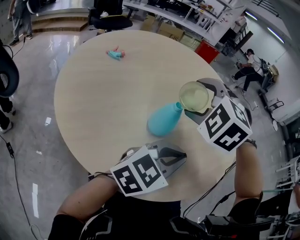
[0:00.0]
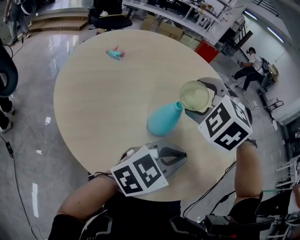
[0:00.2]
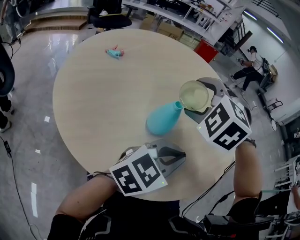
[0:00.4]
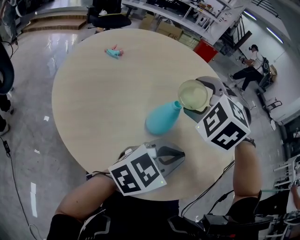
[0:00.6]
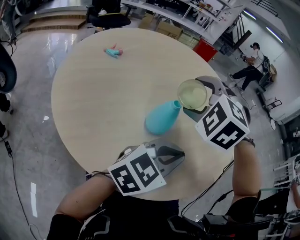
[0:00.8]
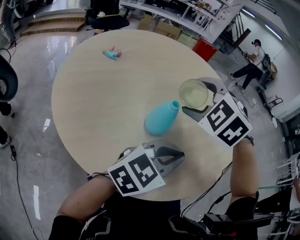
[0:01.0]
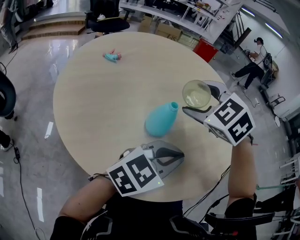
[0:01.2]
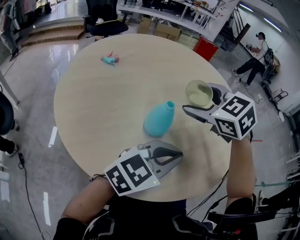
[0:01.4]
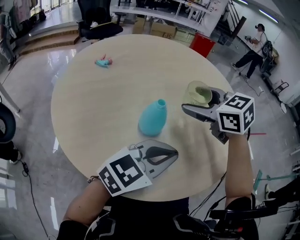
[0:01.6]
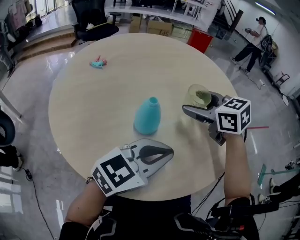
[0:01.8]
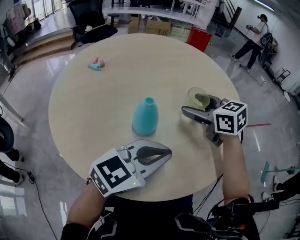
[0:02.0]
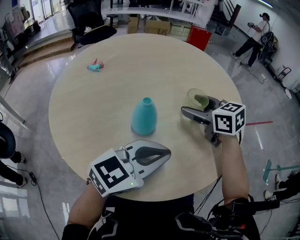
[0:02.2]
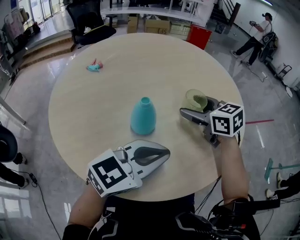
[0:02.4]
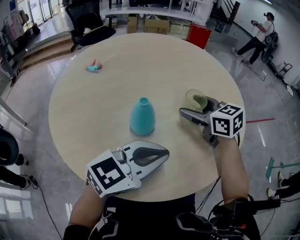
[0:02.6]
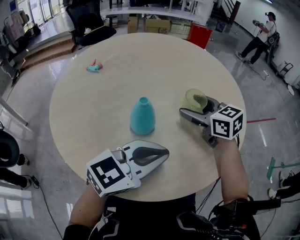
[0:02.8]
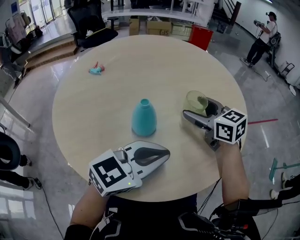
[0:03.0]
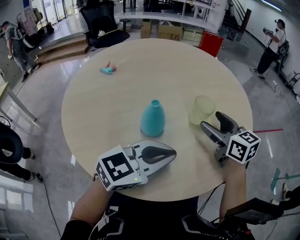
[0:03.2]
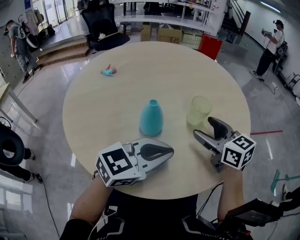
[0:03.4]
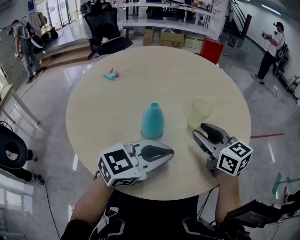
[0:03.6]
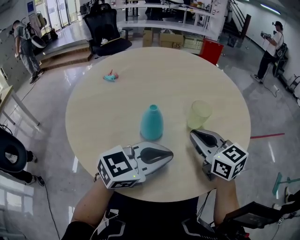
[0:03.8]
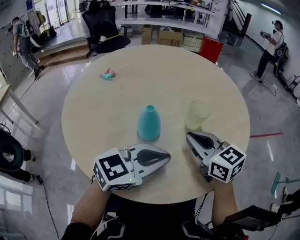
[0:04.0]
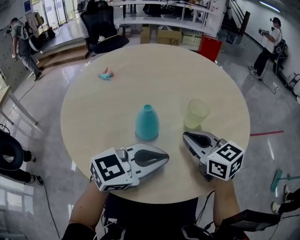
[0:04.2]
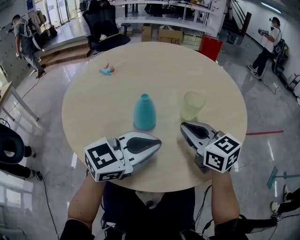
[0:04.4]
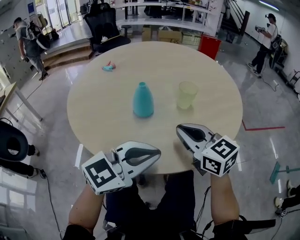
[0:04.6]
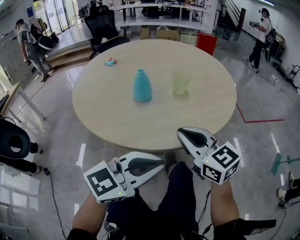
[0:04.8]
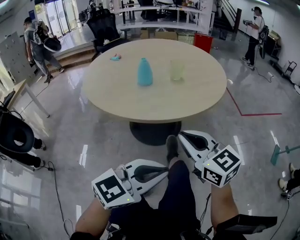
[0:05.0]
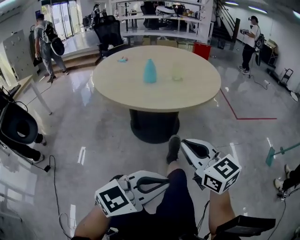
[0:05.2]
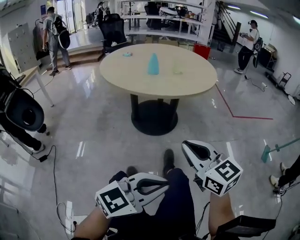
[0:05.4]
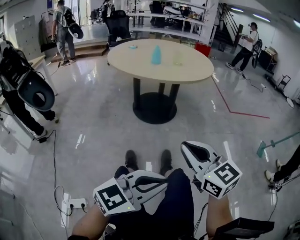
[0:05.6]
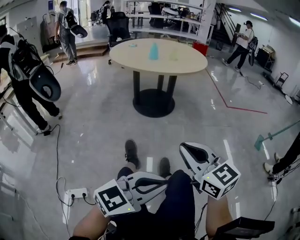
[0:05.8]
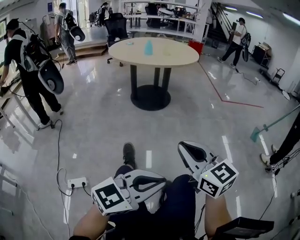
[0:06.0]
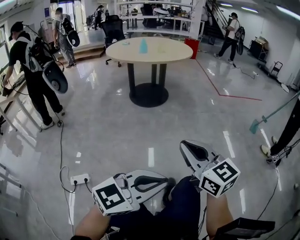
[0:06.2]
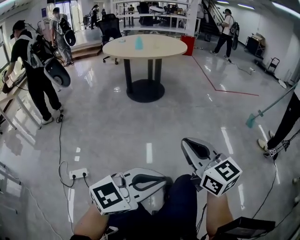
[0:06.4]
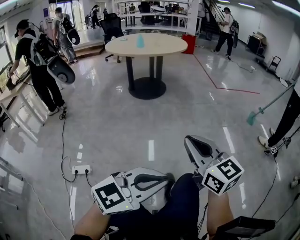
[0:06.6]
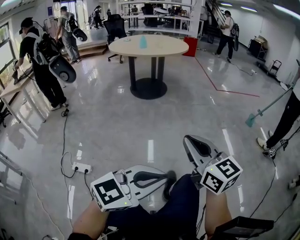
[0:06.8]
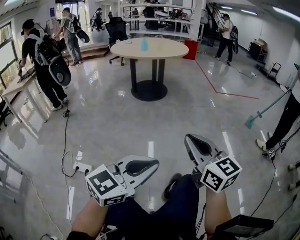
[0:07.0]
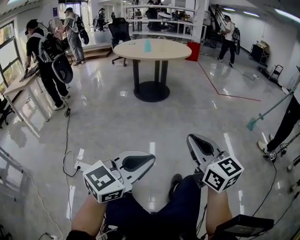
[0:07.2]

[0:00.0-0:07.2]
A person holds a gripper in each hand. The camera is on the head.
0:00.0 to 0:01.4: The right gripper swivels roughly 40 degrees.
0:01.4 to 0:02.8: The right gripper shifts roughly 10 cm downward and to the right, and turns by approximately 30 degrees.
0:02.8 to 0:04.4: The right gripper heads backward, covering approximately 10 cm, and closes up.
0:04.4 to 0:05.8: Both grippers are carried backward, about 80 cm.
0:05.8 to 0:07.2: Both grippers travel together backward and to the right, roughly 25 cm.

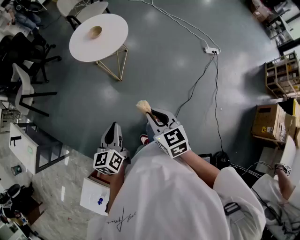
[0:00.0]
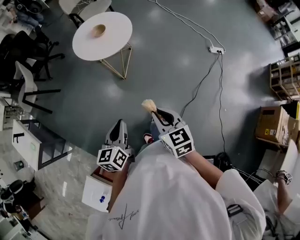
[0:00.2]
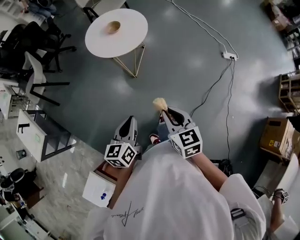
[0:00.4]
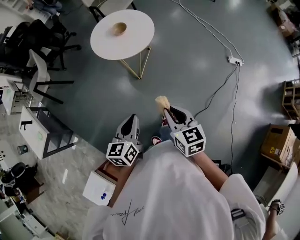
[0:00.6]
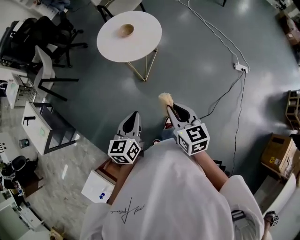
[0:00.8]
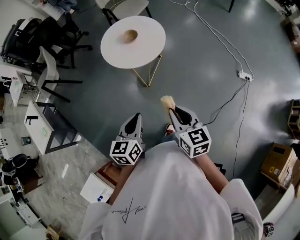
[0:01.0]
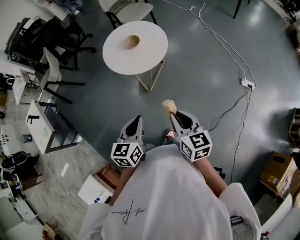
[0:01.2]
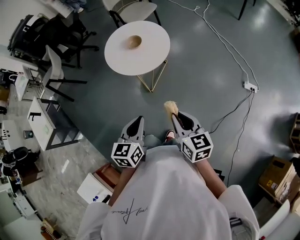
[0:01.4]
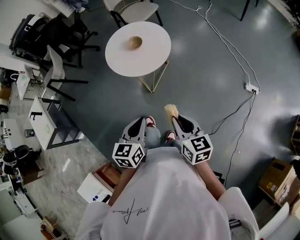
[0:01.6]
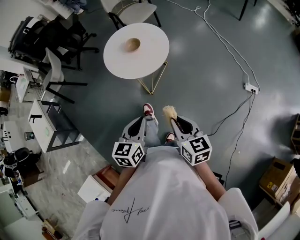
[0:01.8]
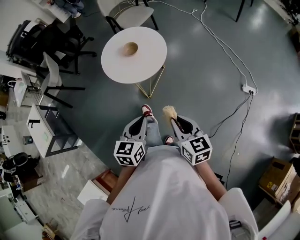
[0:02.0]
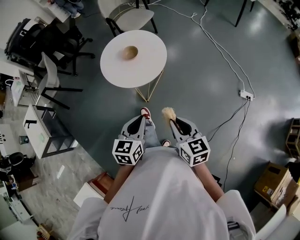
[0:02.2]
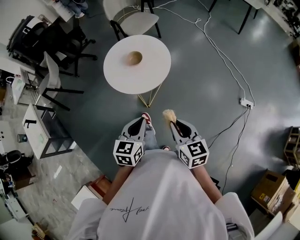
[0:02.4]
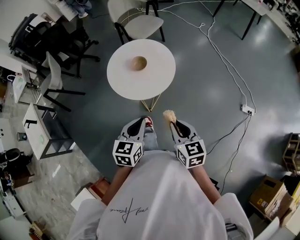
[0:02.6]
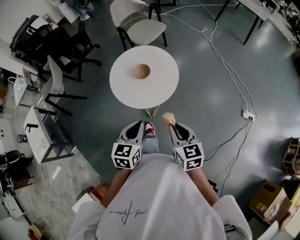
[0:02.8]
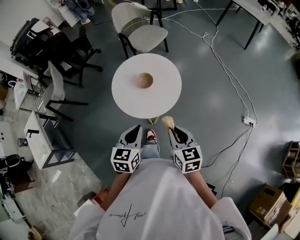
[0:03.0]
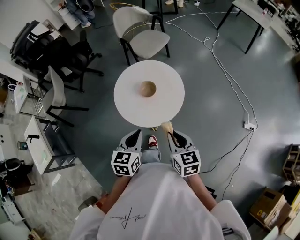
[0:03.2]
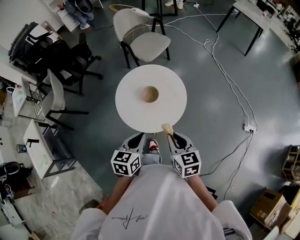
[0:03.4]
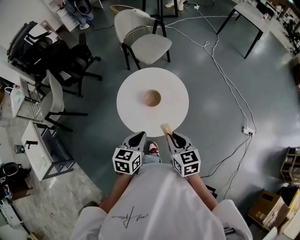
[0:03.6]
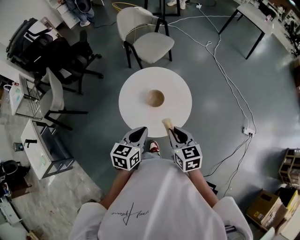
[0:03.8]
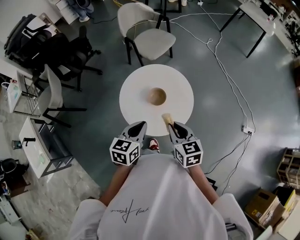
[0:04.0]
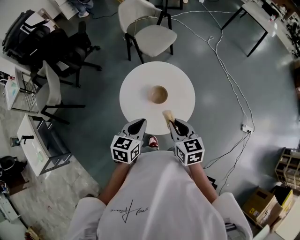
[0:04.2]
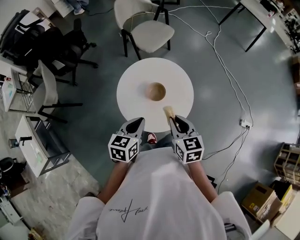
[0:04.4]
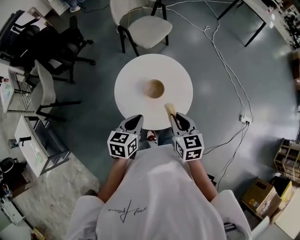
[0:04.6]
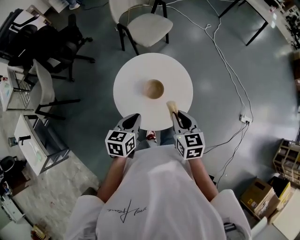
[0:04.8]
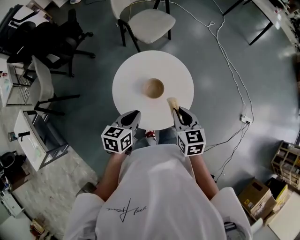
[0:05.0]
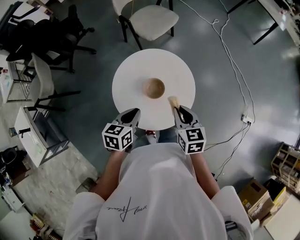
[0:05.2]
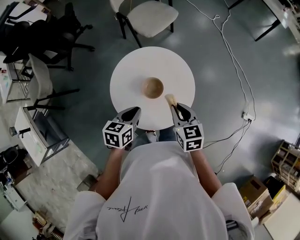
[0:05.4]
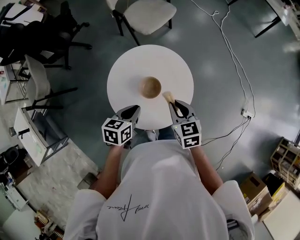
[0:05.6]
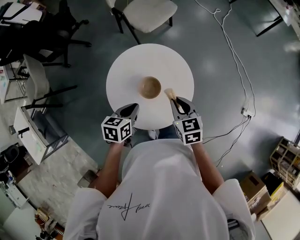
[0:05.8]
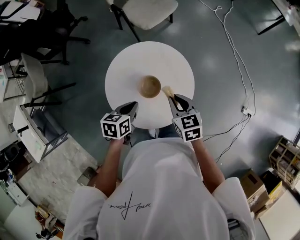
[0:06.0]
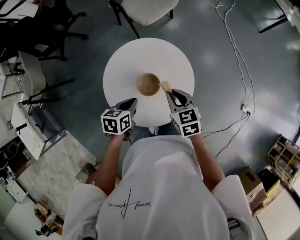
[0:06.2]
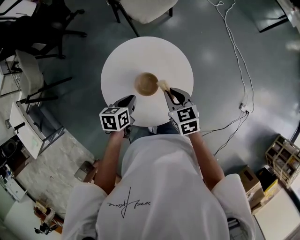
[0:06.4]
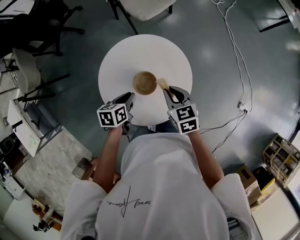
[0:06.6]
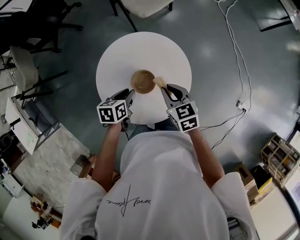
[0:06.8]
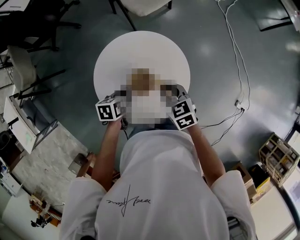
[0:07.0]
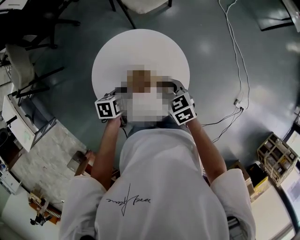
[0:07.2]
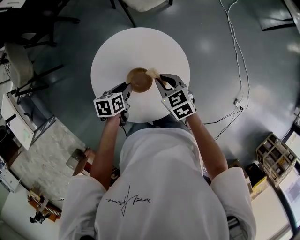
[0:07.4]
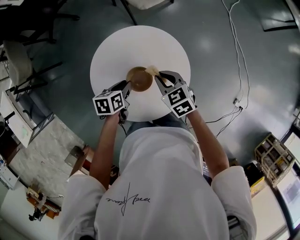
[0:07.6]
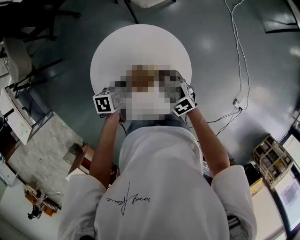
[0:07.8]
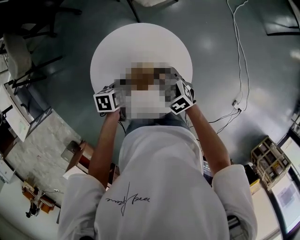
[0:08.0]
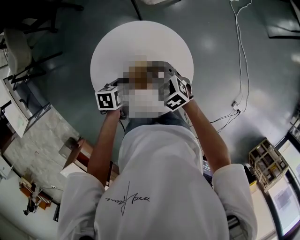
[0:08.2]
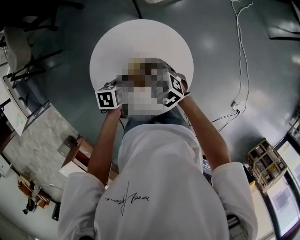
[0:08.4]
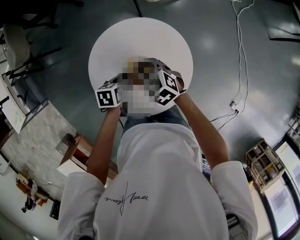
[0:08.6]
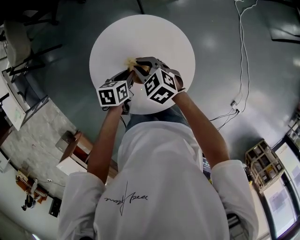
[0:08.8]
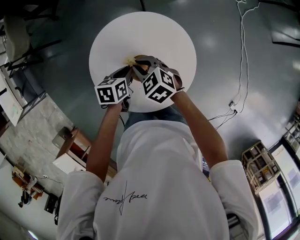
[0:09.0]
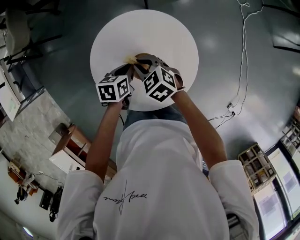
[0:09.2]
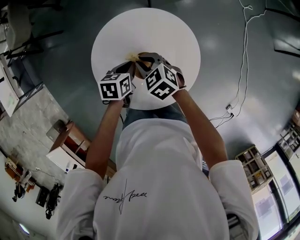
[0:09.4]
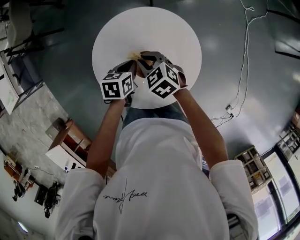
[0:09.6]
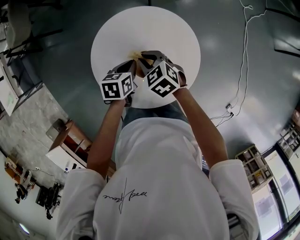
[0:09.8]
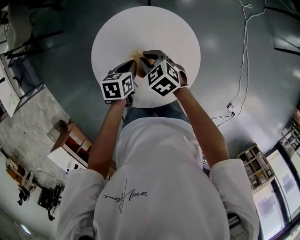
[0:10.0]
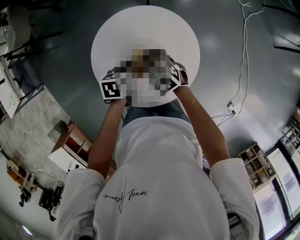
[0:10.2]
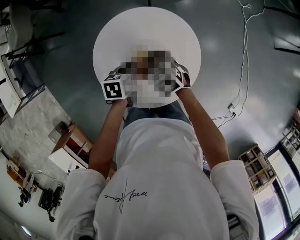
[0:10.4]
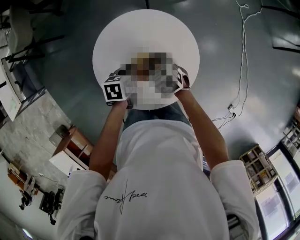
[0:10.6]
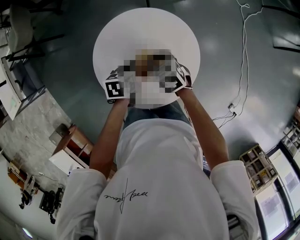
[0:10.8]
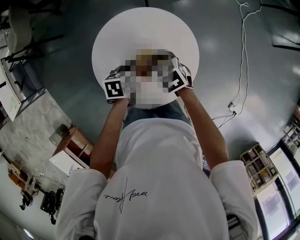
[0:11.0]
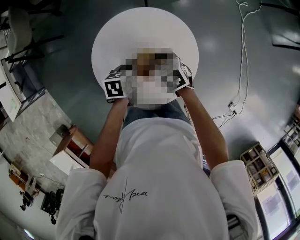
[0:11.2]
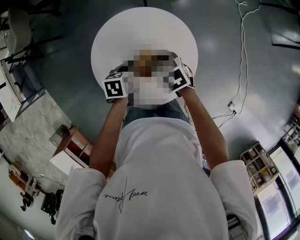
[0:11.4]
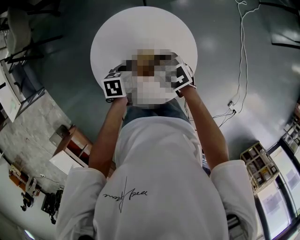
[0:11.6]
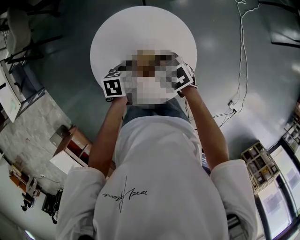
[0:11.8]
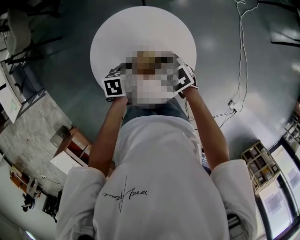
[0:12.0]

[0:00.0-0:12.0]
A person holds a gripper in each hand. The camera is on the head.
0:00.0 to 0:01.6: The two grippers go approximately 20 cm forward and to the right.
0:01.6 to 0:03.0: The grippers both shift forward by some 20 cm.
0:03.0 to 0:04.4: The grippers both shift forward and to the left by about 20 cm.
0:04.4 to 0:06.0: The right gripper moves forward and downward, about 15 cm; the left gripper shifts roughly 15 cm downward and forward, and swivels approximately 20 degrees.
0:06.0 to 0:07.6: Both grippers travel together downward and forward, approximately 10 cm. The right gripper swivels roughly 20 degrees.
0:07.6 to 0:09.0: The right gripper shifts roughly 10 cm to the left, and changes its angle by roughly 20 degrees.
0:09.0 to 0:10.4: There are only small adjustments of the grippers.
0:10.4 to 0:12.0: The right gripper shifts by roughly 5 cm.

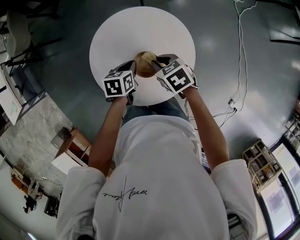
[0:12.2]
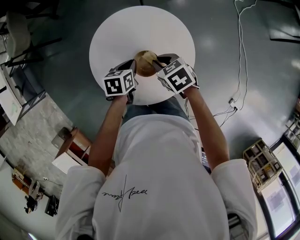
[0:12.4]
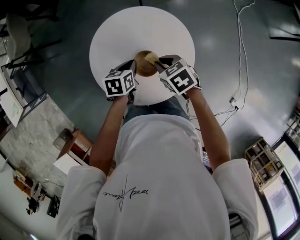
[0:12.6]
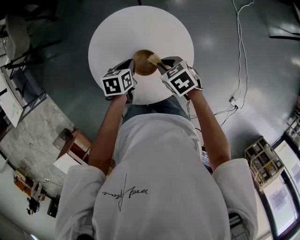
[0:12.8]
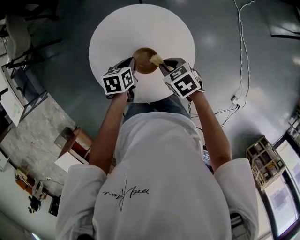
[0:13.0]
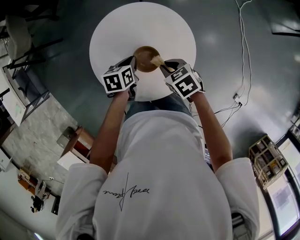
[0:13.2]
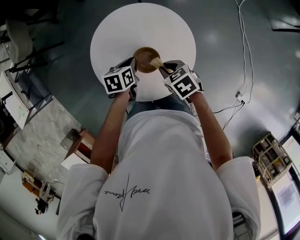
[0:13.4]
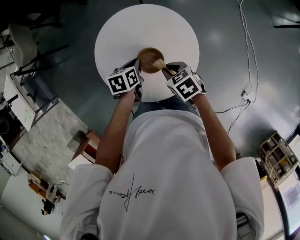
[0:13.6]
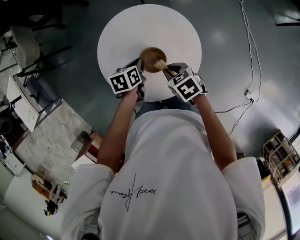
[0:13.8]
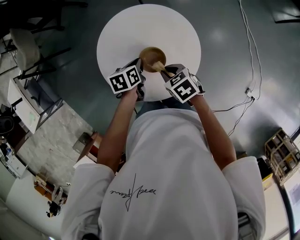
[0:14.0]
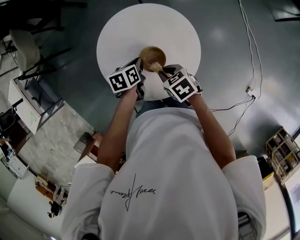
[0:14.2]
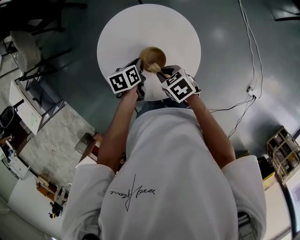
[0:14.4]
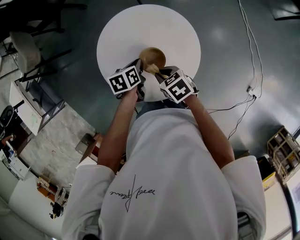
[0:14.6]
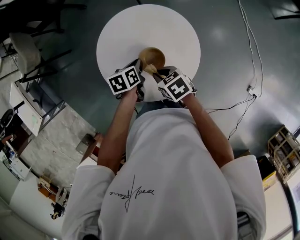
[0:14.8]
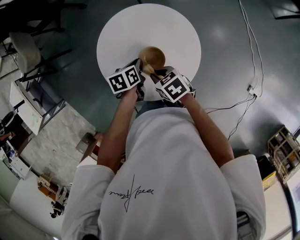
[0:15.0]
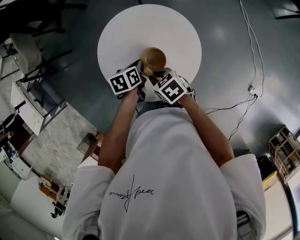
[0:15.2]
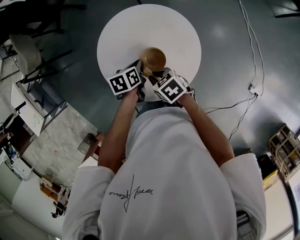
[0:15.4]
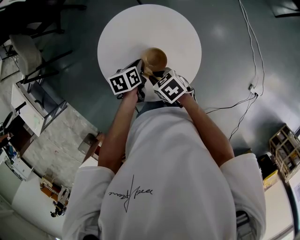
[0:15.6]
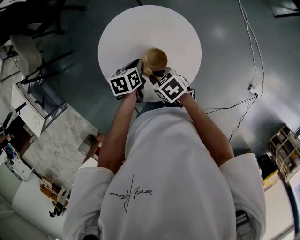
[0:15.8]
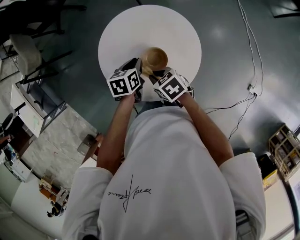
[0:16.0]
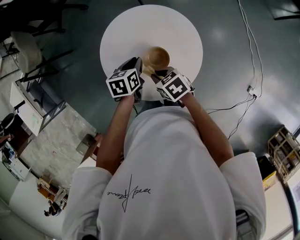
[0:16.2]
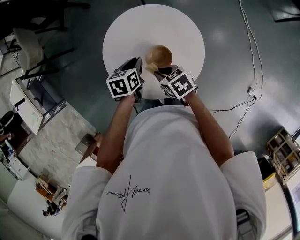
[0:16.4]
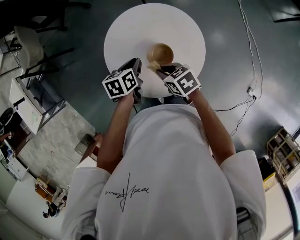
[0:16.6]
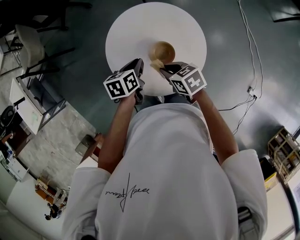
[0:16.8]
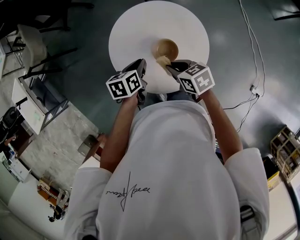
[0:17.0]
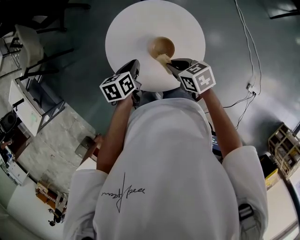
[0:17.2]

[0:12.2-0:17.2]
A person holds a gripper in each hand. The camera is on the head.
0:12.2 to 0:13.8: The right gripper moves backward, about 5 cm.
0:13.8 to 0:15.6: The right gripper travels to the left by approximately 5 cm.
0:15.6 to 0:17.2: The left gripper is displaced upward and to the left by roughly 10 cm, while the right gripper moves upward, approximately 5 cm.
